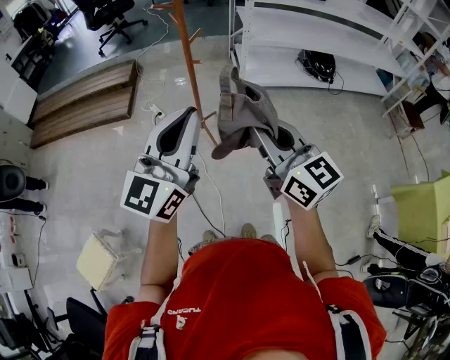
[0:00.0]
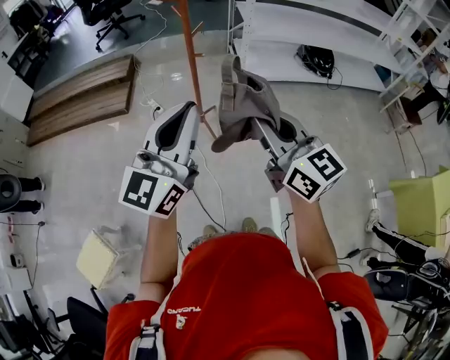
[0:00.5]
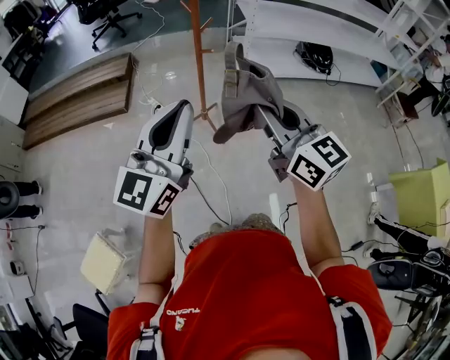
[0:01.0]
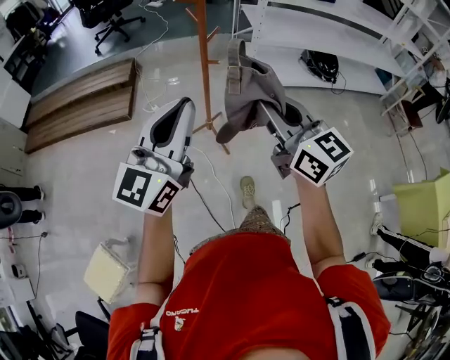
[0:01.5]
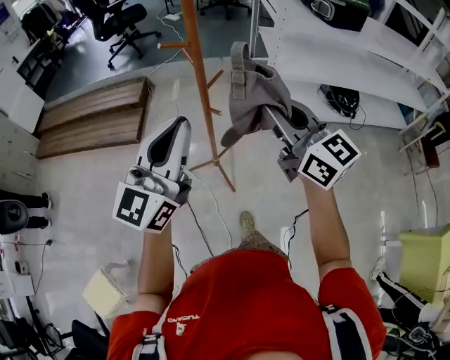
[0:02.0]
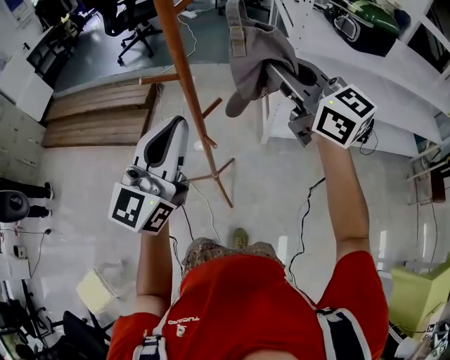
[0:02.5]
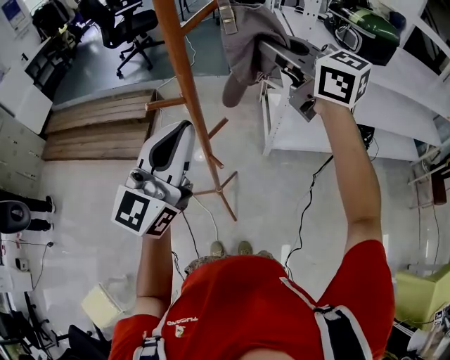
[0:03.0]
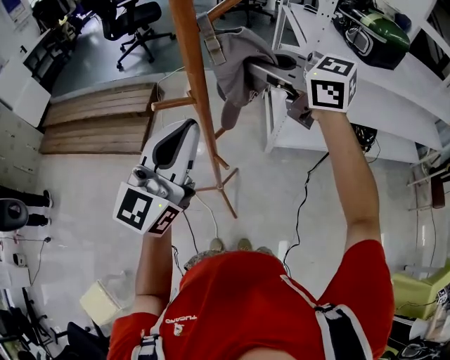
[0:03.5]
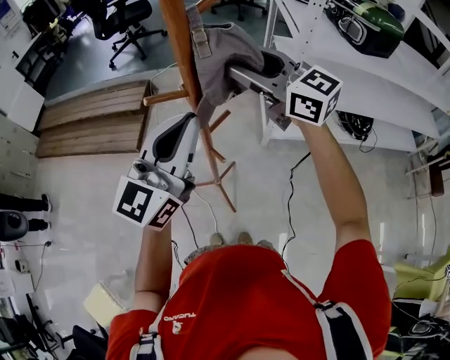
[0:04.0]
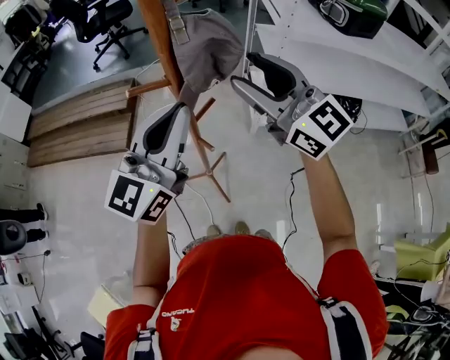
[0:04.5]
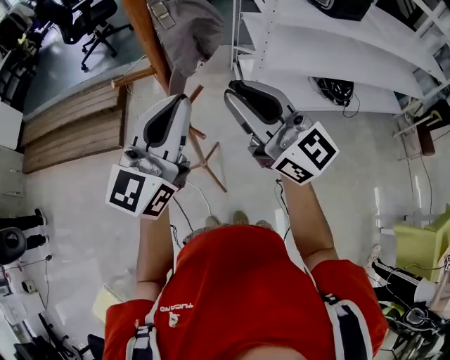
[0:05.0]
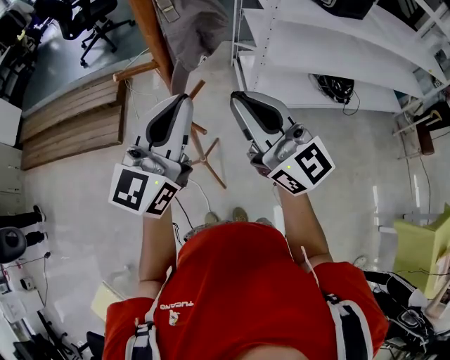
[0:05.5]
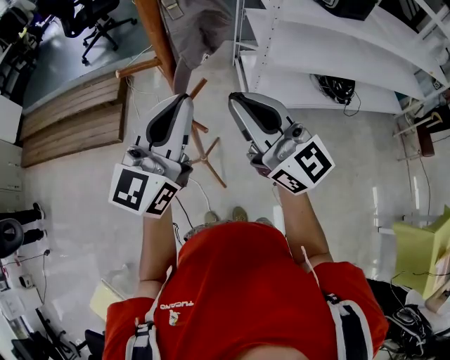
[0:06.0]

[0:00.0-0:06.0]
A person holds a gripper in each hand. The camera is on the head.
0:00.0 to 0:02.0: Both grippers travel together forward, approximately 30 cm.
0:02.0 to 0:04.0: Both grippers move forward, about 25 cm. The right gripper opens.
0:04.0 to 0:06.0: The right gripper travels backward by about 15 cm, turns by approximately 20 degrees, and closes its fingers.

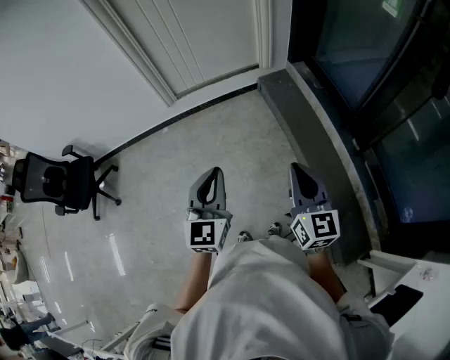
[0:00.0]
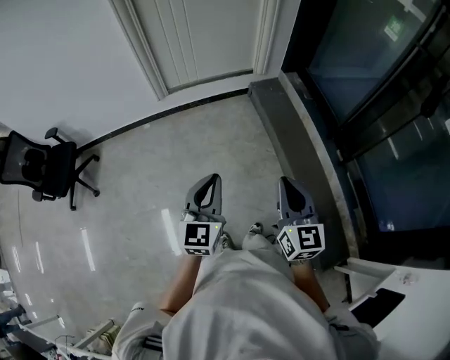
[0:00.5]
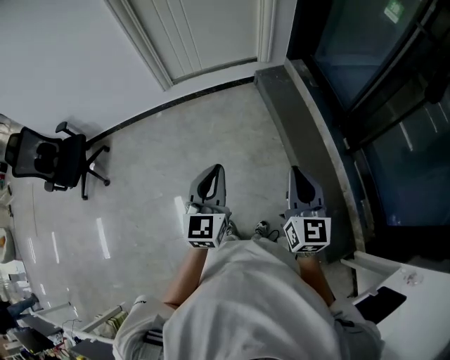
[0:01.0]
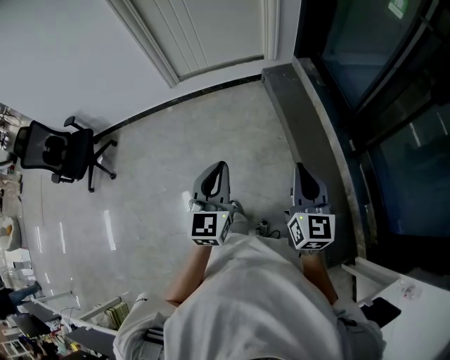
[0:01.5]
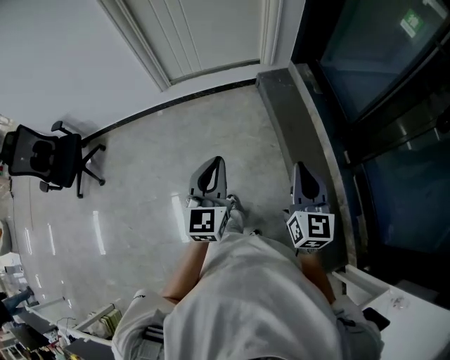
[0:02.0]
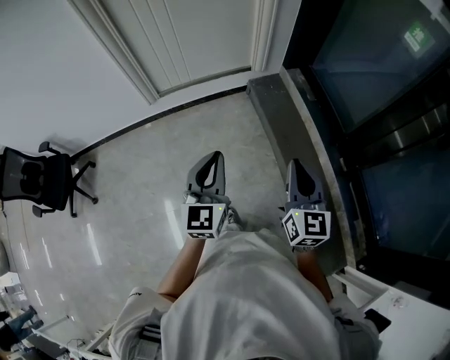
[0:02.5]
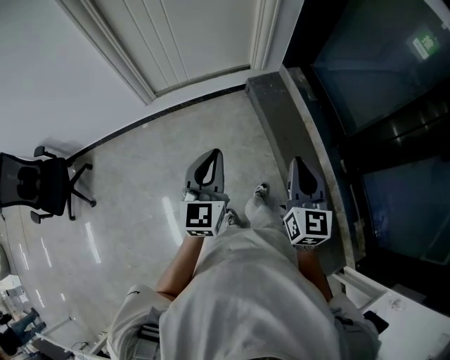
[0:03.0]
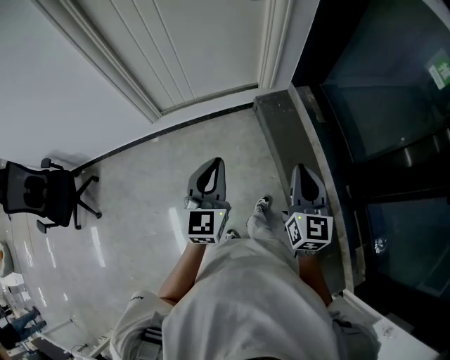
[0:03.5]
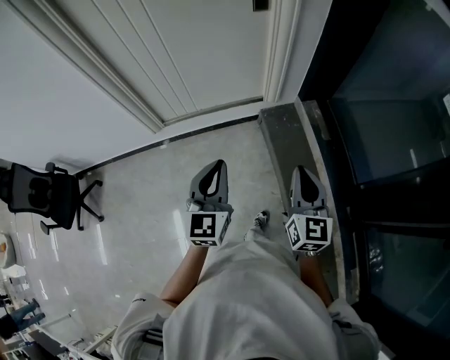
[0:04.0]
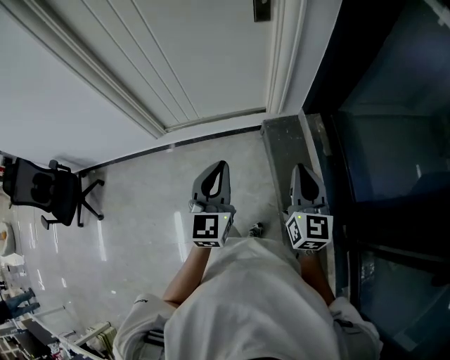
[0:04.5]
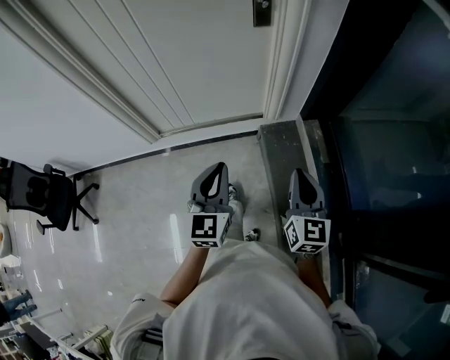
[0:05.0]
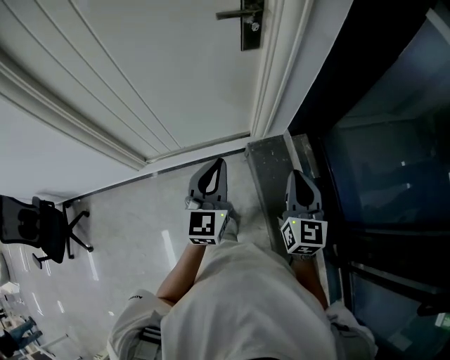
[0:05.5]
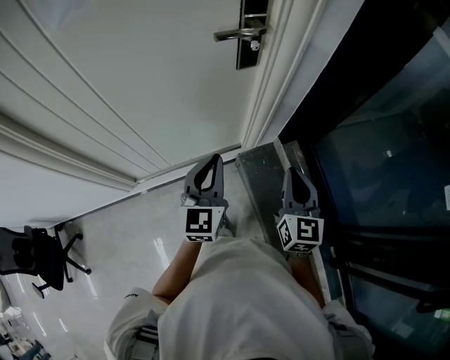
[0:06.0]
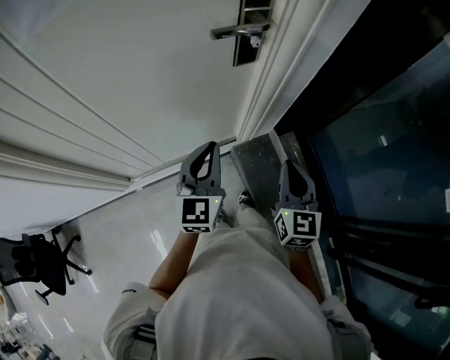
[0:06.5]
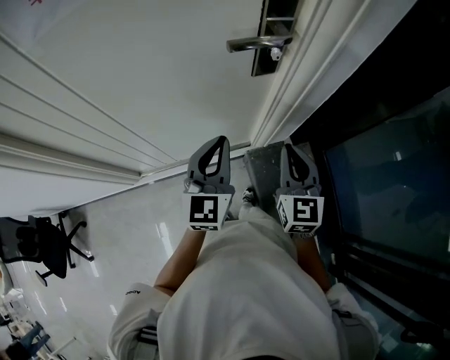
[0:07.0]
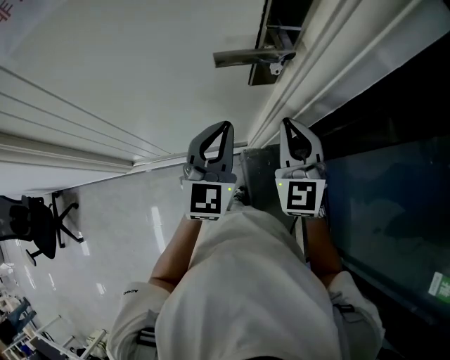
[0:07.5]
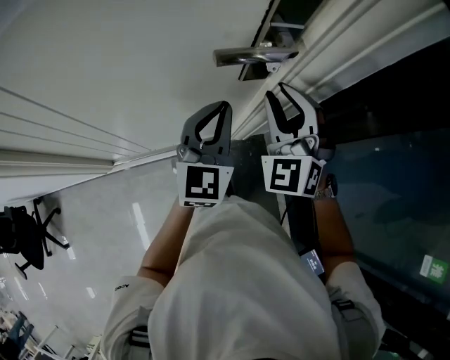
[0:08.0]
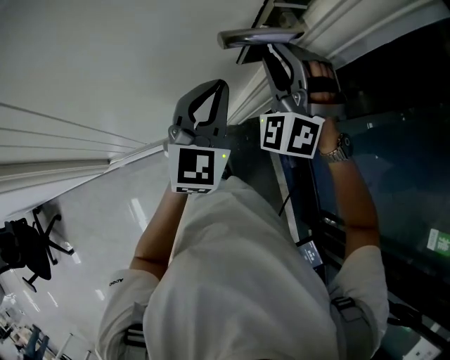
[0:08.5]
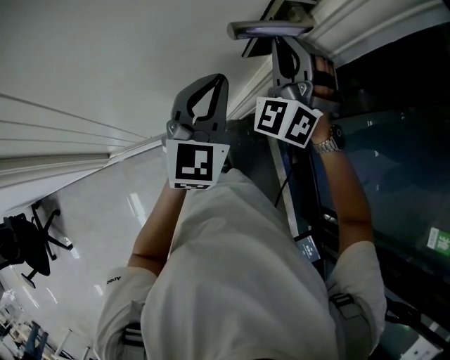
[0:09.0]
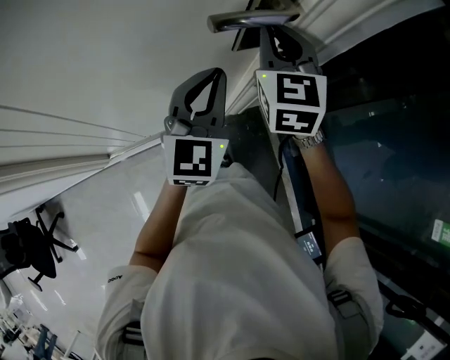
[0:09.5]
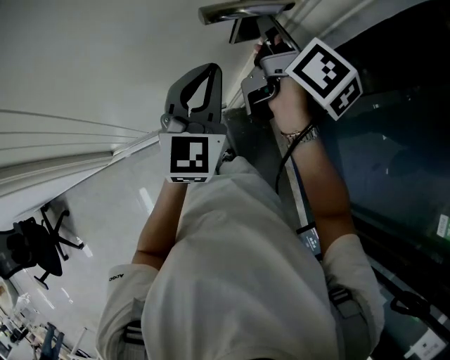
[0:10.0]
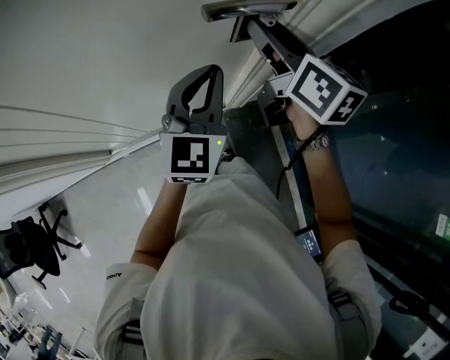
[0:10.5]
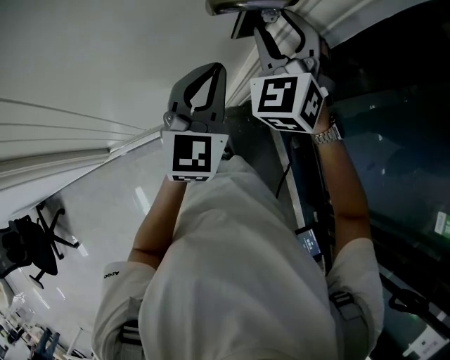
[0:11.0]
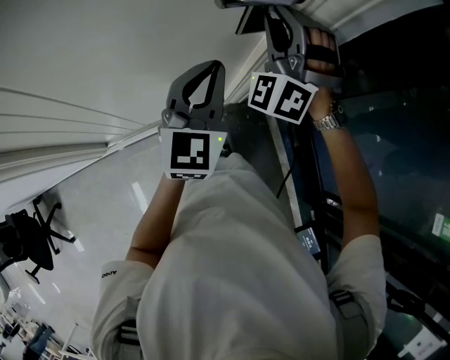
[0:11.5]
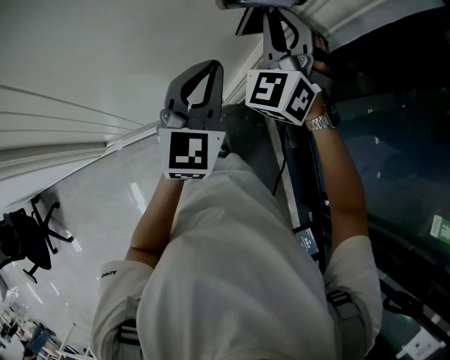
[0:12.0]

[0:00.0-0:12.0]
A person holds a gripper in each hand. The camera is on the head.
0:00.0 to 0:02.0: The two grippers go roughly 10 cm to the right and forward.
0:02.0 to 0:04.0: Both grippers move forward, approximately 40 cm.
0:04.0 to 0:06.0: Both grippers move forward, roughly 35 cm.
0:06.0 to 0:08.0: The grippers both shift forward by roughly 25 cm. The right gripper rotates around the line of its fingers by about 60 degrees, counterclockwise from behind, and opens up.
0:08.0 to 0:10.0: The right gripper travels forward by roughly 5 cm, and twists approximately 100 degrees clockwise, seen from behind.
0:10.0 to 0:12.0: The right gripper rotates around the line of its fingers by roughly 110 degrees, counterclockwise from behind, and opens, then closes again.

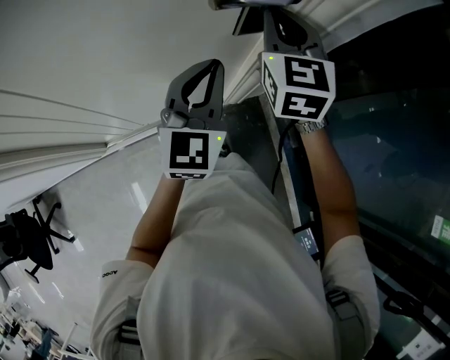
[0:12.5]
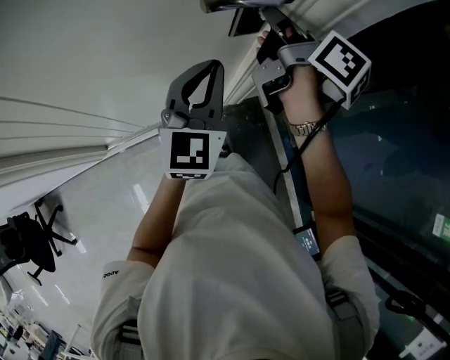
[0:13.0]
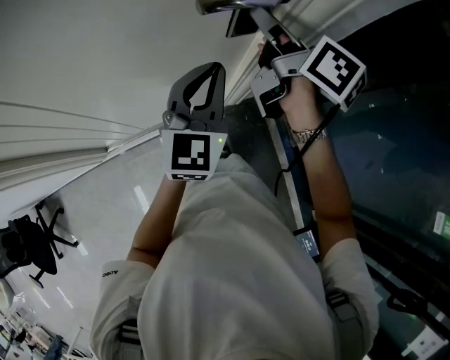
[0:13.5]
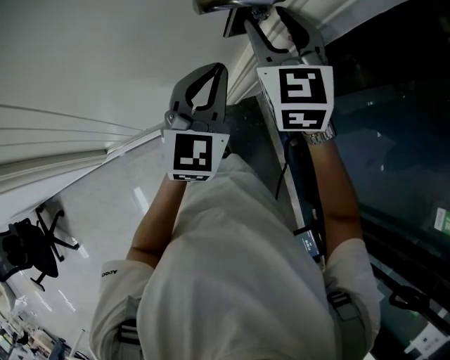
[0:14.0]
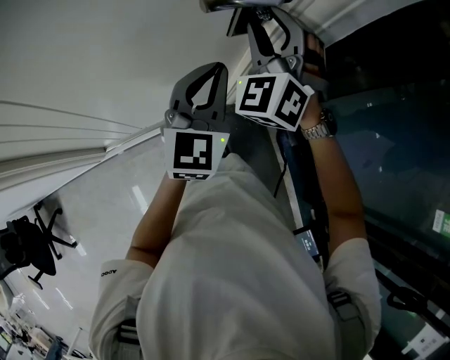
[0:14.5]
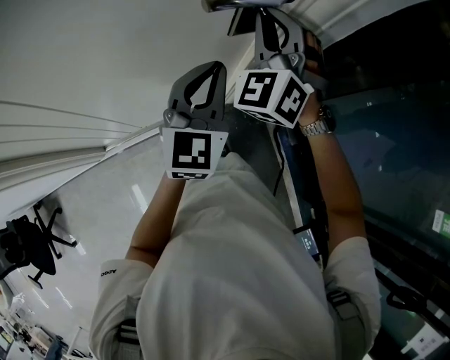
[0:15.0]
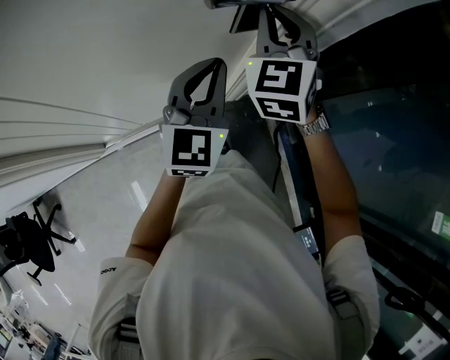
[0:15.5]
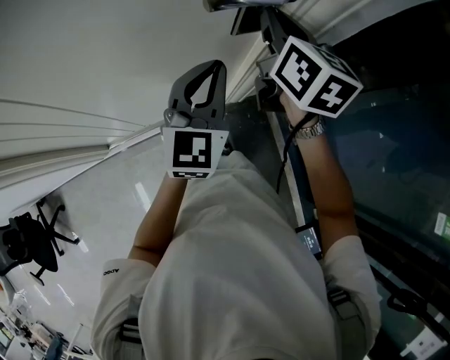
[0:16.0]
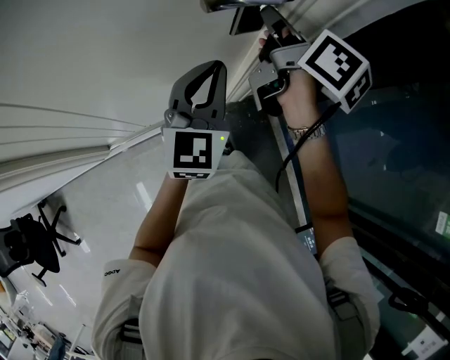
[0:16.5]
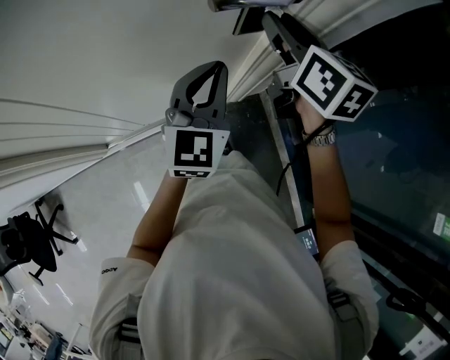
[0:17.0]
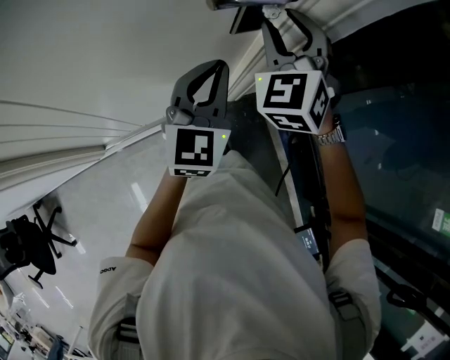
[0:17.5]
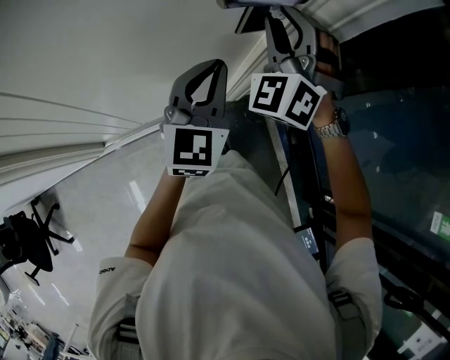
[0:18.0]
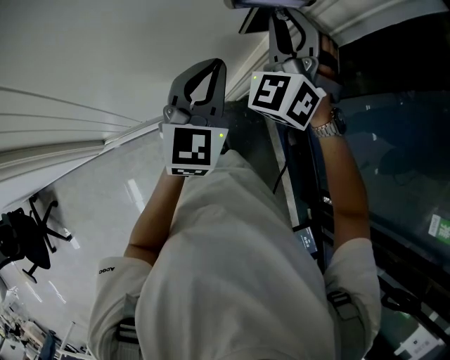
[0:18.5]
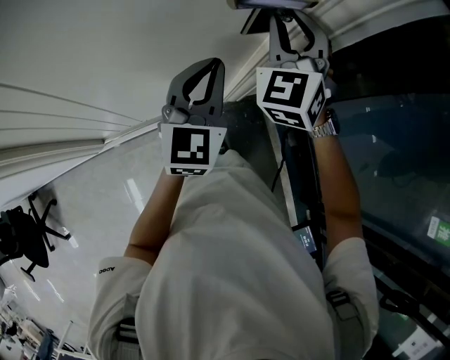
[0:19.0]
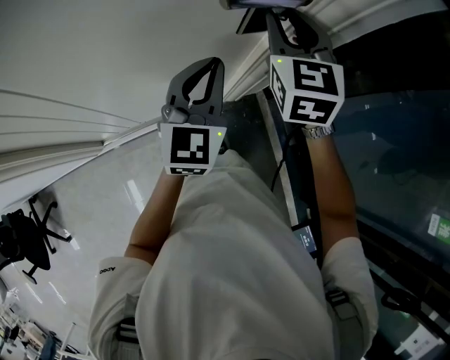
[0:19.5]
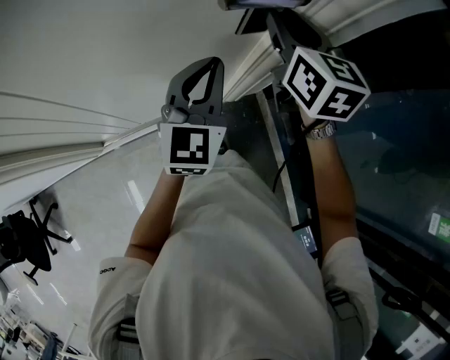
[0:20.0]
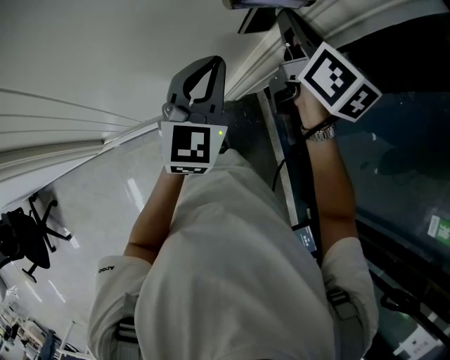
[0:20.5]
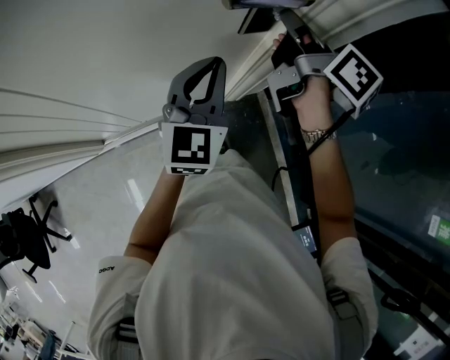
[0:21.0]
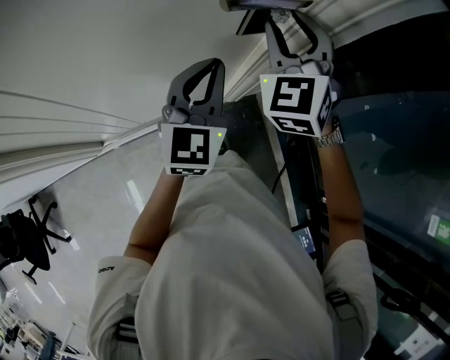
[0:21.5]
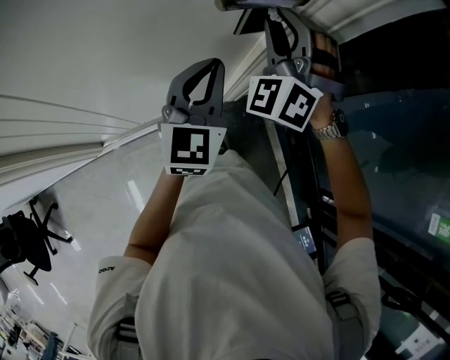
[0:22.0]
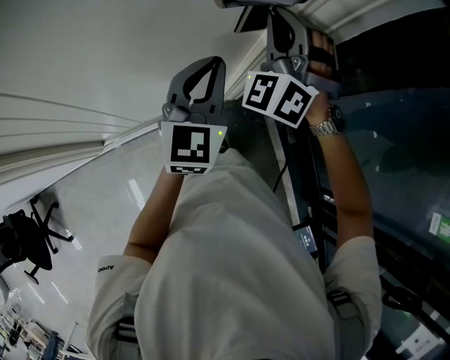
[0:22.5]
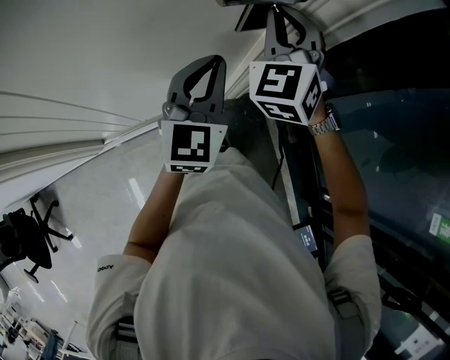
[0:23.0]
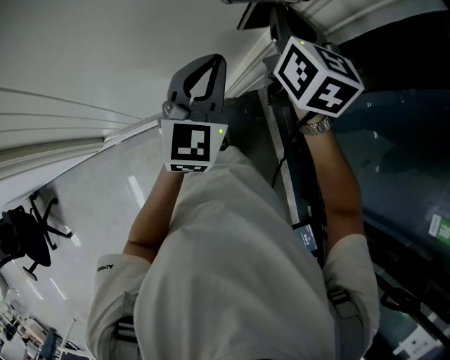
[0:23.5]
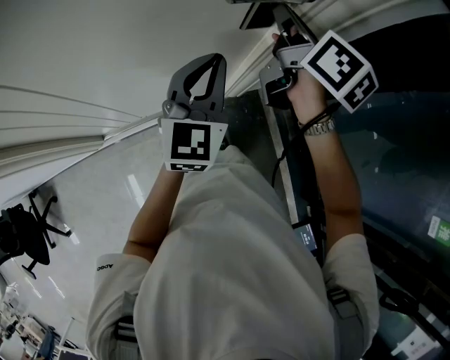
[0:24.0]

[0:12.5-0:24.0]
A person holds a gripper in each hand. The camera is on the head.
0:12.5 to 0:14.5: The right gripper rotates around the line of its fingers by some 40 degrees, counterclockwise from behind, and opens up.
0:14.5 to 0:16.5: The right gripper twists roughly 110 degrees clockwise, seen from behind, and closes up.
0:16.5 to 0:18.5: The right gripper rolls counterclockwise, seen from behind, by roughly 110 degrees, and opens.
0:18.5 to 0:20.0: The right gripper rotates around the line of its fingers by roughly 70 degrees, clockwise from behind.
0:20.0 to 0:22.0: The right gripper twists approximately 70 degrees counterclockwise, seen from behind, and closes, then opens again.
0:22.0 to 0:24.0: The right gripper twists some 110 degrees clockwise, seen from behind, and closes its fingers.
